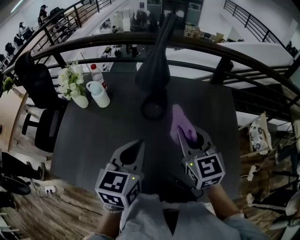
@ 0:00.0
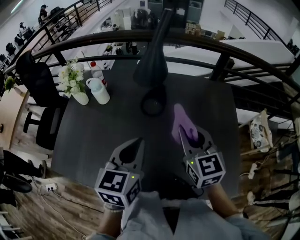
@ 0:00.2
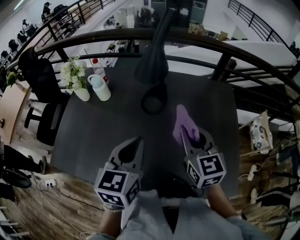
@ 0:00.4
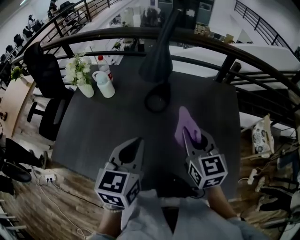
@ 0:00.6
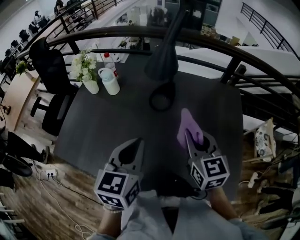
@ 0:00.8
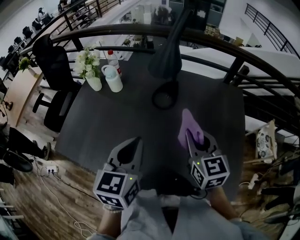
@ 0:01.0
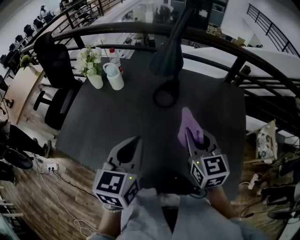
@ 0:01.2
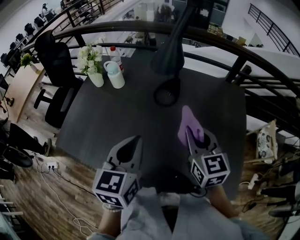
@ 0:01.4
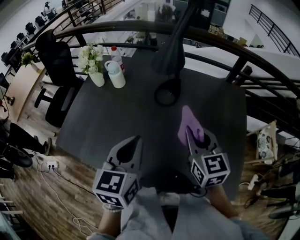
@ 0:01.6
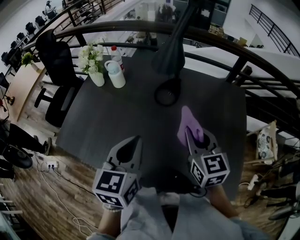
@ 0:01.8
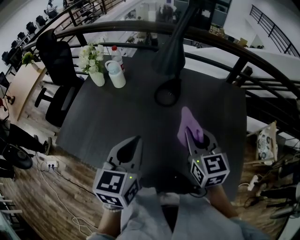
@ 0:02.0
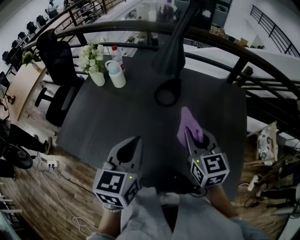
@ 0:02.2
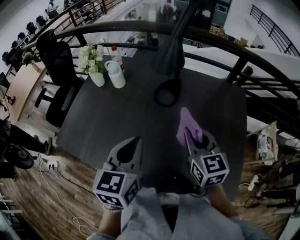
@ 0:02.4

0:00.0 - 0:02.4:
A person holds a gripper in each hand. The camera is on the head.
0:00.0 - 0:01.2: The left gripper is displaced backward by some 5 cm; the right gripper changes place by roughly 5 cm.
0:01.2 - 0:02.4: Both grippers stay put.

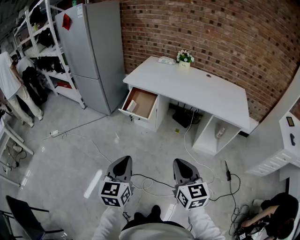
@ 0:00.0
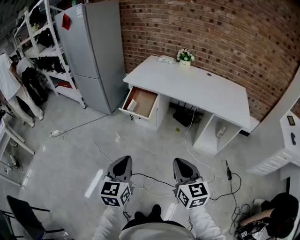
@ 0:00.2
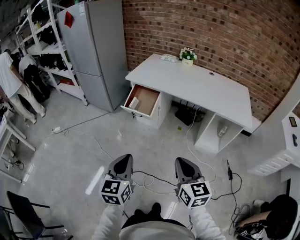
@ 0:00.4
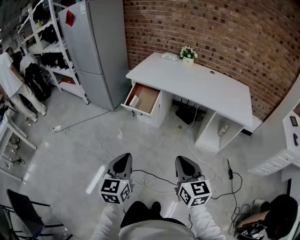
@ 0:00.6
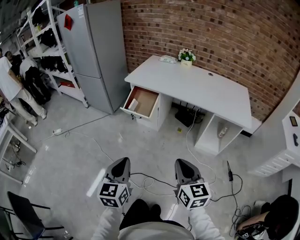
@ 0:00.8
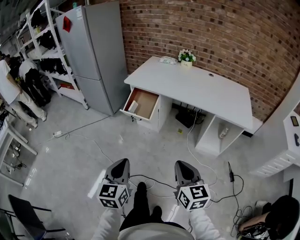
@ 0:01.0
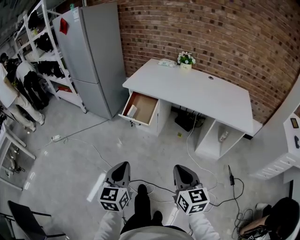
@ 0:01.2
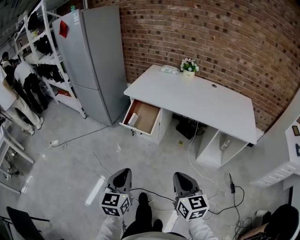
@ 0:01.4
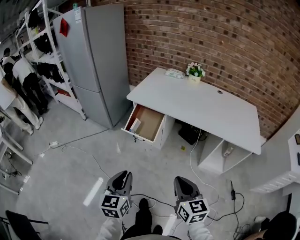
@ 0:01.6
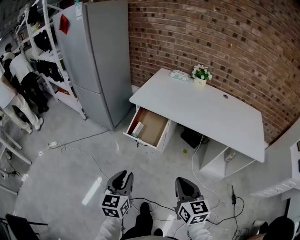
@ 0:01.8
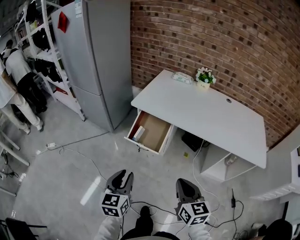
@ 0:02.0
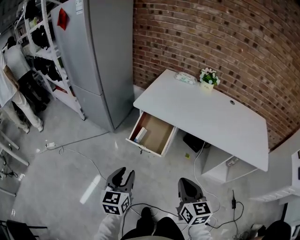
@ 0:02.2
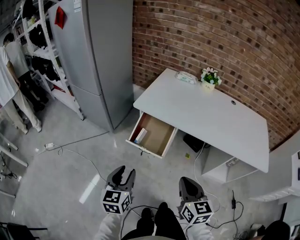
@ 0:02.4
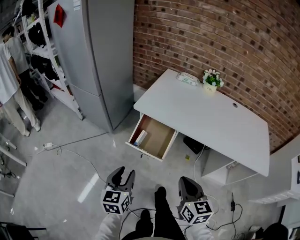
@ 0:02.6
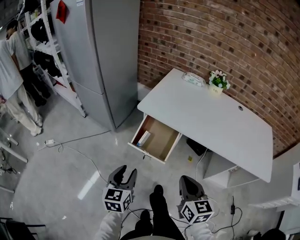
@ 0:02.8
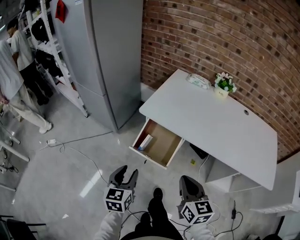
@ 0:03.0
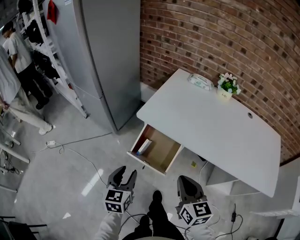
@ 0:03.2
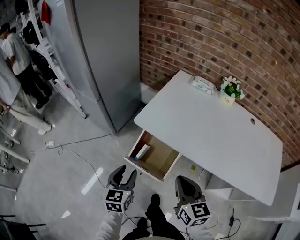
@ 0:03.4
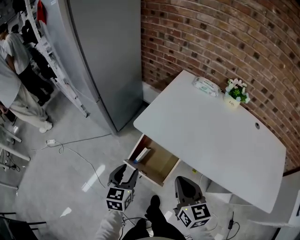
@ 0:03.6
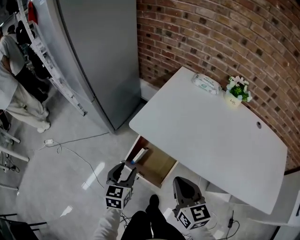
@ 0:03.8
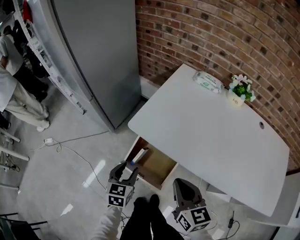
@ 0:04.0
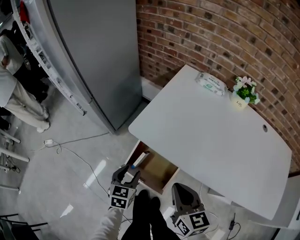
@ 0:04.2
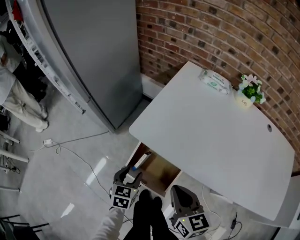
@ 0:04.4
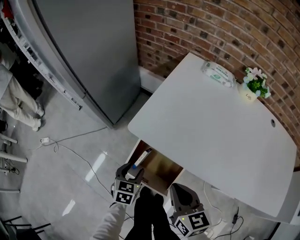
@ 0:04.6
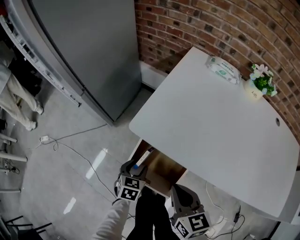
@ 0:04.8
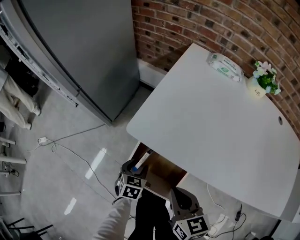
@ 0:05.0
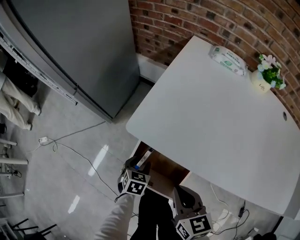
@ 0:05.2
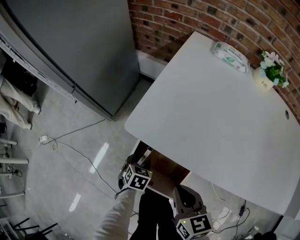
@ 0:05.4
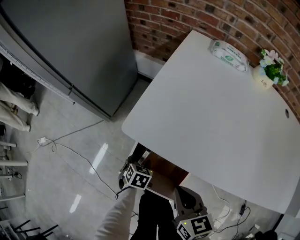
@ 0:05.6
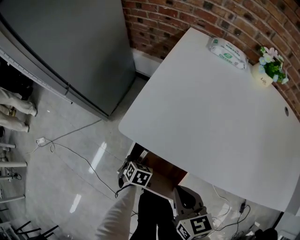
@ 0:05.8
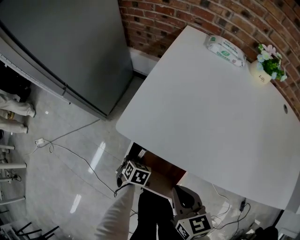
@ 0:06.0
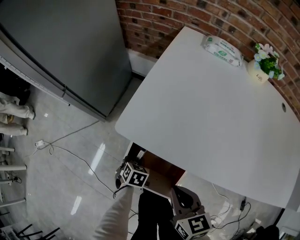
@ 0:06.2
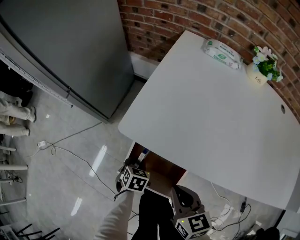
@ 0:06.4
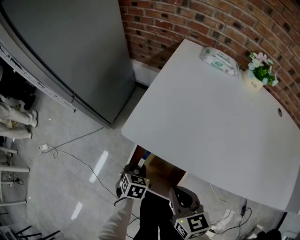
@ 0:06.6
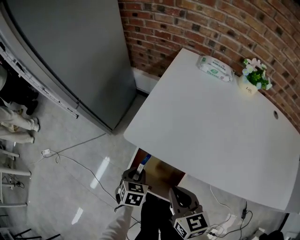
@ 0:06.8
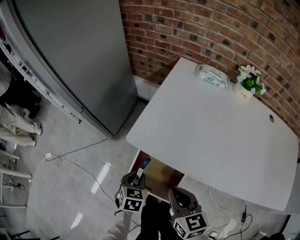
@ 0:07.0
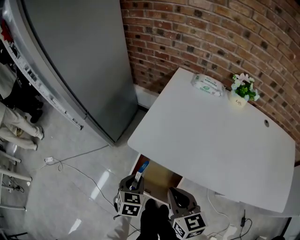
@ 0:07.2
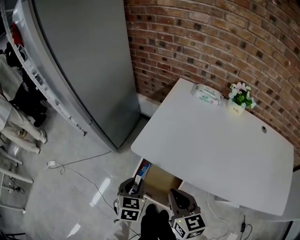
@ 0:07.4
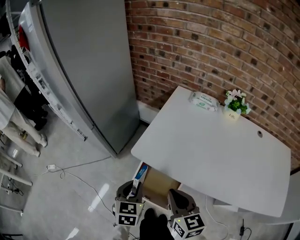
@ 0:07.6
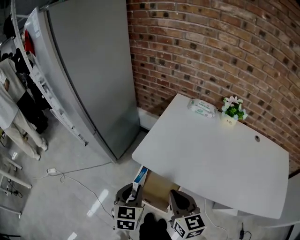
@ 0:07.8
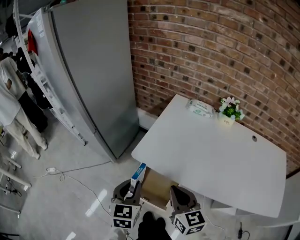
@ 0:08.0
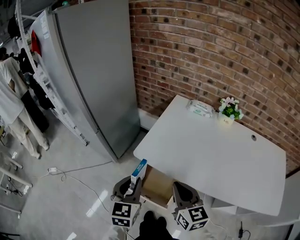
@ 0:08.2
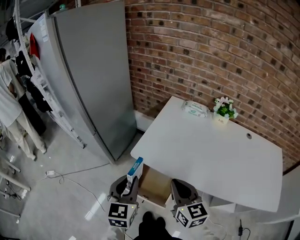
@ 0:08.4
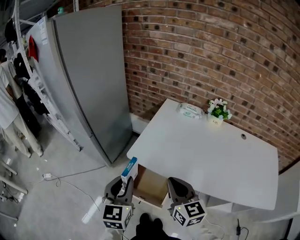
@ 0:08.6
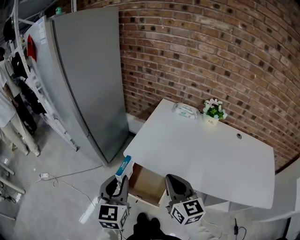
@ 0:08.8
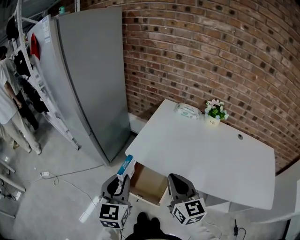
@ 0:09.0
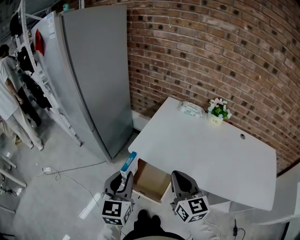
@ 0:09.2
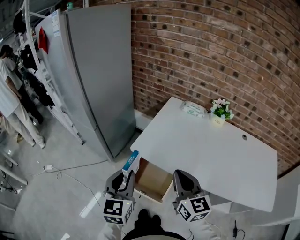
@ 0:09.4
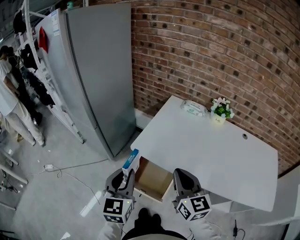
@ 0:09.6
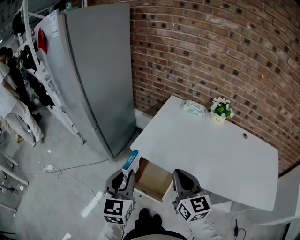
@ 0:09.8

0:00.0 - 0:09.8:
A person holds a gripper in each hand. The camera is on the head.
0:00.0 - 0:01.4: Both grippers travel together forward, about 10 cm.
0:01.4 - 0:02.8: The grippers both shift forward by some 30 cm. The left gripper opens its fingers.
0:02.8 - 0:04.2: The right gripper shifts some 25 cm forward. Meanwhile the left gripper shifts some 30 cm forward and downward.
0:04.2 - 0:05.6: The right gripper travels downward by about 15 cm. The left gripper shifts approximately 20 cm downward, and turns by roughly 30 degrees.
0:05.6 - 0:07.0: The right gripper moves upward, some 10 cm. The left gripper shifts some 15 cm upward, and closes up.
0:07.0 - 0:08.4: The left gripper shifts about 30 cm upward, and angles its fingers upward, by some 30 degrees. Meanwhile the right gripper travels upward by roughly 15 cm.
0:08.4 - 0:09.8: The right gripper moves some 5 cm. The left gripper shifts by some 5 cm.

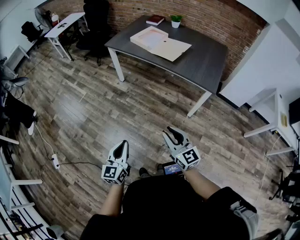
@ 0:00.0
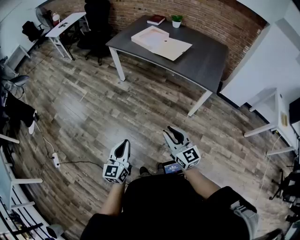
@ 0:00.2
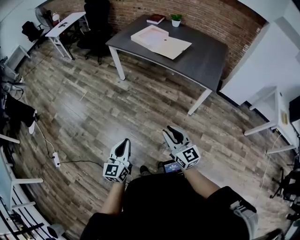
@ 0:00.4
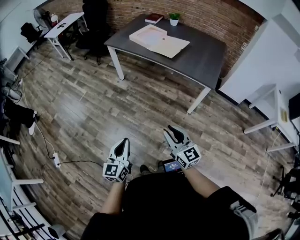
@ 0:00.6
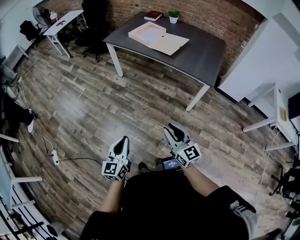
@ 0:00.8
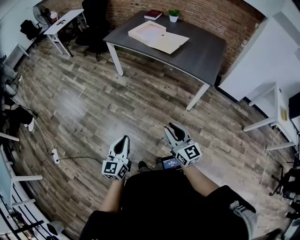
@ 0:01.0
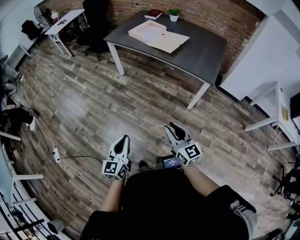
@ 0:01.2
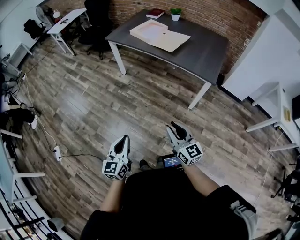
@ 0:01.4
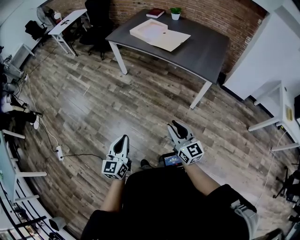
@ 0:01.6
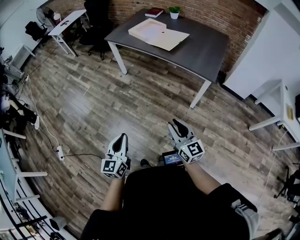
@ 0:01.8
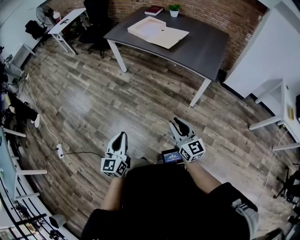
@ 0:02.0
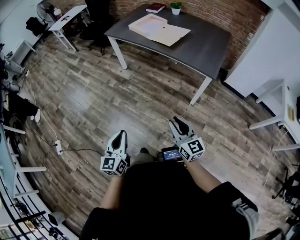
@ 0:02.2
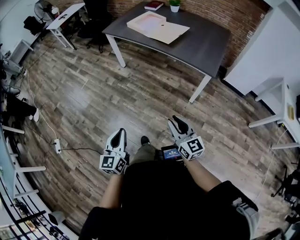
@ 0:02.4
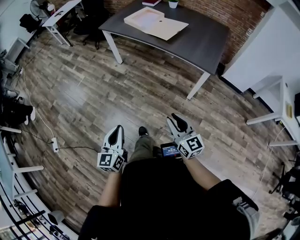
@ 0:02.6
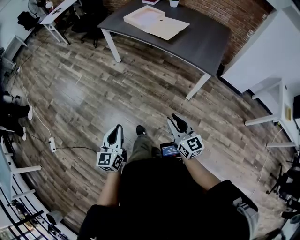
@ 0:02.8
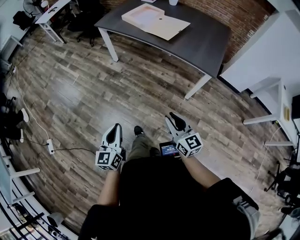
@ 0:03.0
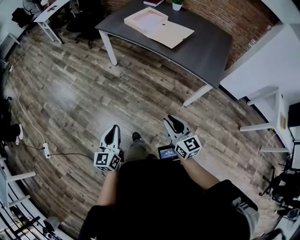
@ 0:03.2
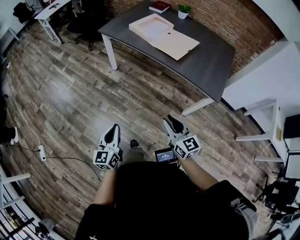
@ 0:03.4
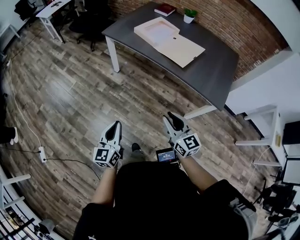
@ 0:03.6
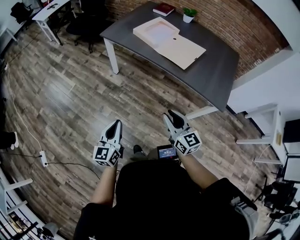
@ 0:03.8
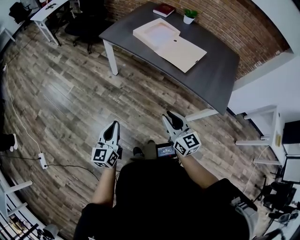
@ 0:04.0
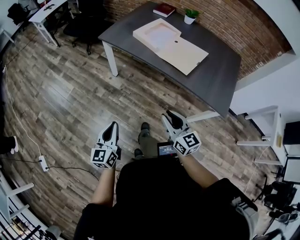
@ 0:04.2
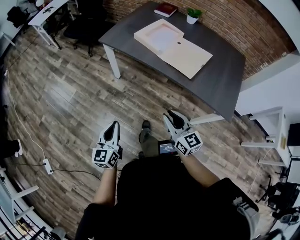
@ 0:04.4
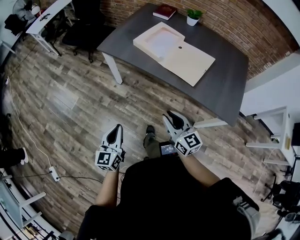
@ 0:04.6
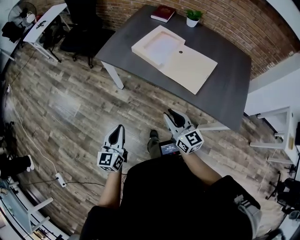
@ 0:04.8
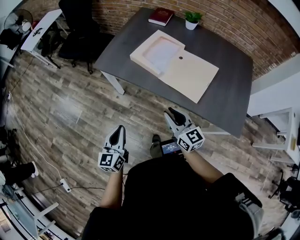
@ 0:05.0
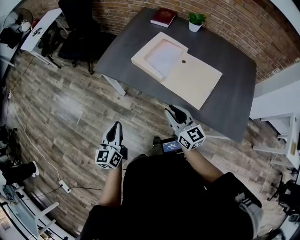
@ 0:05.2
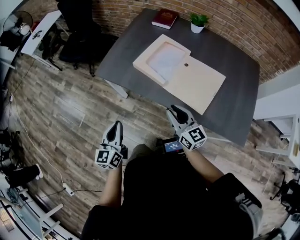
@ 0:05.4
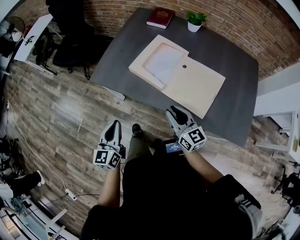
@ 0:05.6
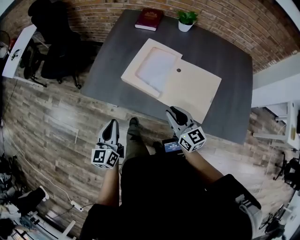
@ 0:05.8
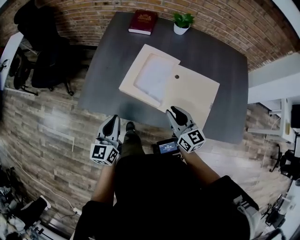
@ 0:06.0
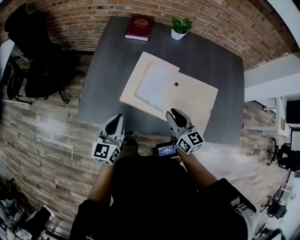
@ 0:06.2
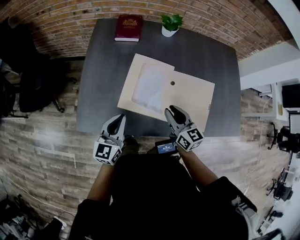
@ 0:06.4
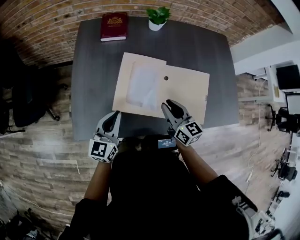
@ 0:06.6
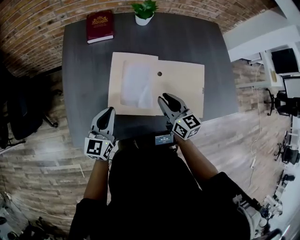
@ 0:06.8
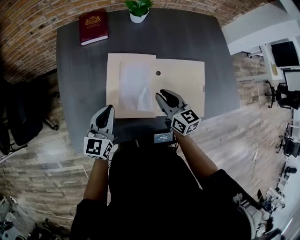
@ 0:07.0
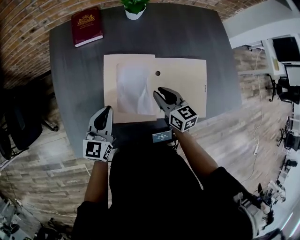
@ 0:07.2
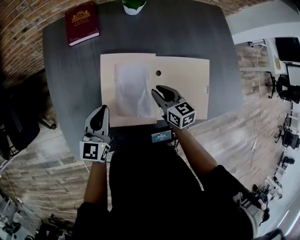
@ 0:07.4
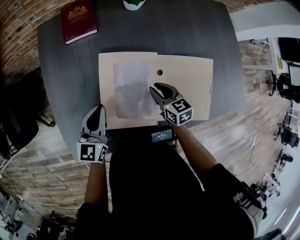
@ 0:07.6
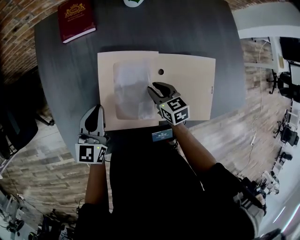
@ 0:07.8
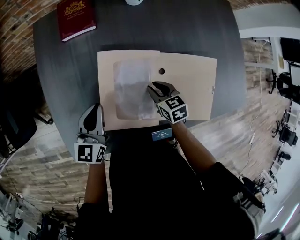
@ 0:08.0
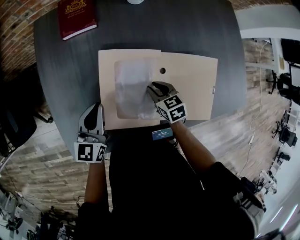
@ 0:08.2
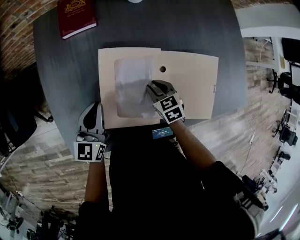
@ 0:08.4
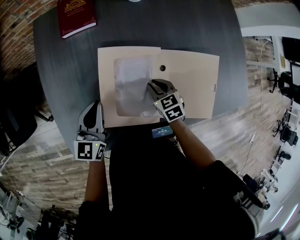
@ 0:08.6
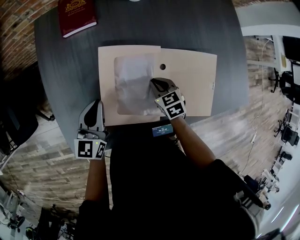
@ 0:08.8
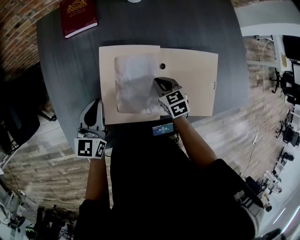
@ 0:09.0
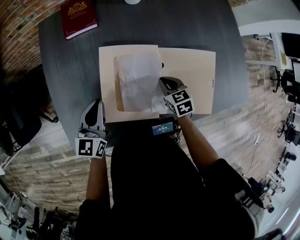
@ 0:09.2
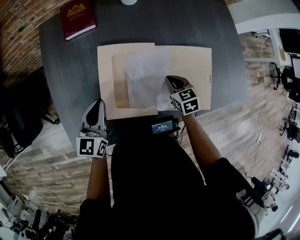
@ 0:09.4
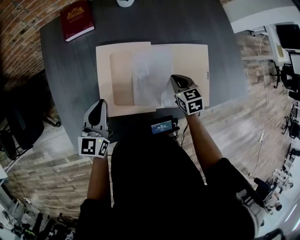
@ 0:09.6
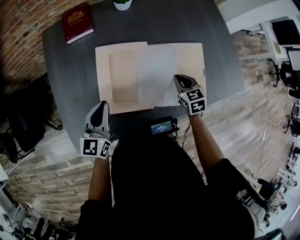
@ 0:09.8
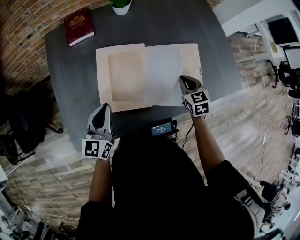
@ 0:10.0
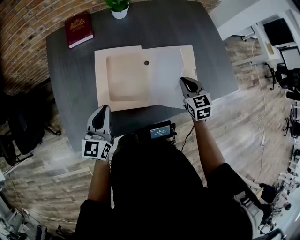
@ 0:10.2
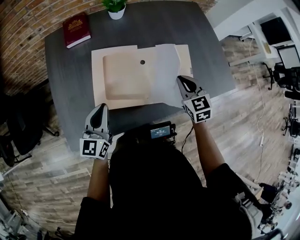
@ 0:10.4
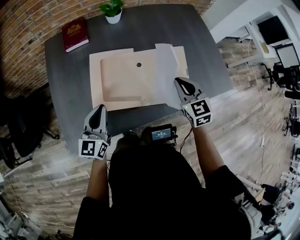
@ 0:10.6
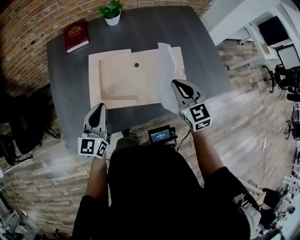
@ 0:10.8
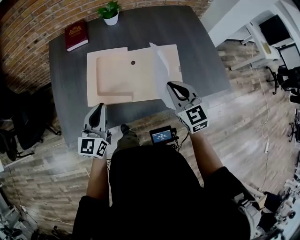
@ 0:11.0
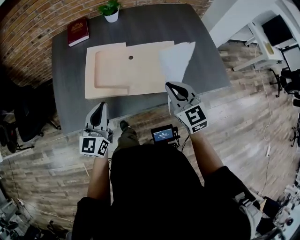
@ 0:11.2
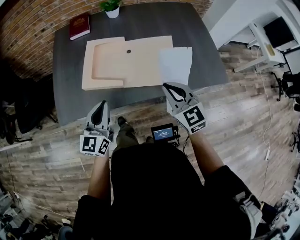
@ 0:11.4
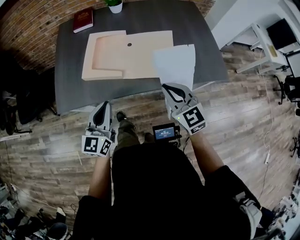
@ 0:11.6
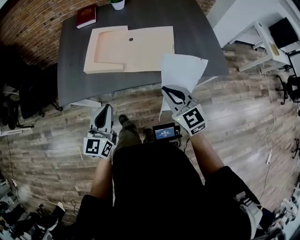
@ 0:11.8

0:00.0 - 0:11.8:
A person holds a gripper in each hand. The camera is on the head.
0:00.0 - 0:01.4: The right gripper ends up roughly 5 cm from where it was. The left gripper moves about 5 cm.
0:01.4 - 0:03.0: The two grippers go roughly 10 cm forward.
0:03.0 - 0:04.4: The grippers both shift forward by about 35 cm.
0:04.4 - 0:06.0: Both grippers are carried forward, about 50 cm. The left gripper rotates roughly 20 degrees; the right gripper turns by approximately 20 degrees.
0:06.0 - 0:07.4: The left gripper ends up about 25 cm from where it was, and swivels about 30 degrees. The right gripper moves some 20 cm, and rotates some 30 degrees.
0:07.4 - 0:08.8: The right gripper goes approximately 10 cm downward, and rotates roughly 20 degrees.
0:08.8 - 0:10.4: The right gripper heads upward, to the right and backward, covering about 25 cm, and turns by roughly 30 degrees. The left gripper heads backward, upward and to the right, covering some 15 cm.
0:10.4 - 0:11.8: The left gripper goes approximately 30 cm backward and to the right; the right gripper moves backward, about 25 cm, and changes its angle by some 30 degrees.
